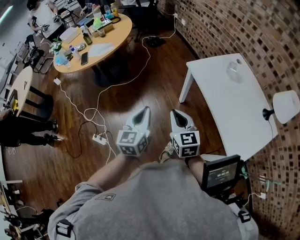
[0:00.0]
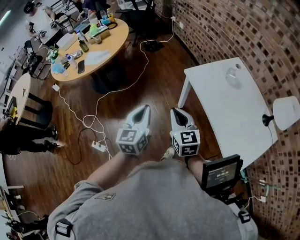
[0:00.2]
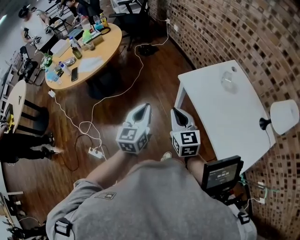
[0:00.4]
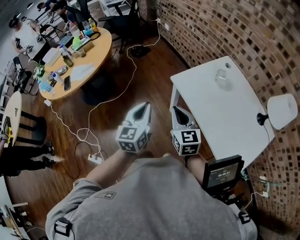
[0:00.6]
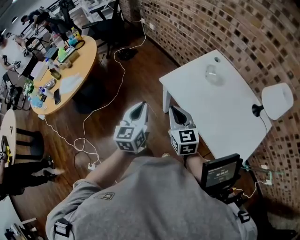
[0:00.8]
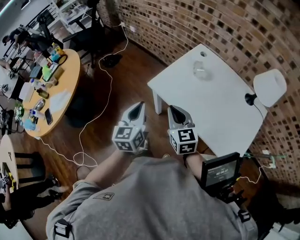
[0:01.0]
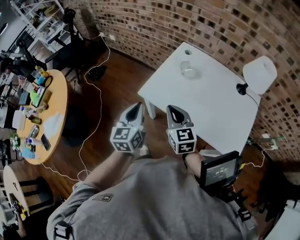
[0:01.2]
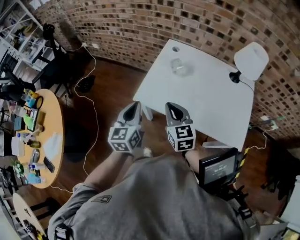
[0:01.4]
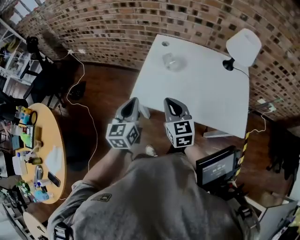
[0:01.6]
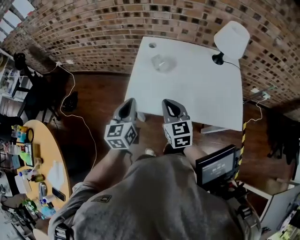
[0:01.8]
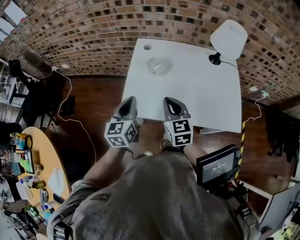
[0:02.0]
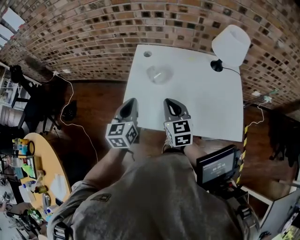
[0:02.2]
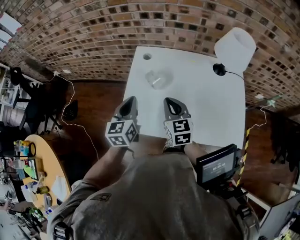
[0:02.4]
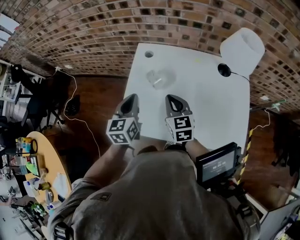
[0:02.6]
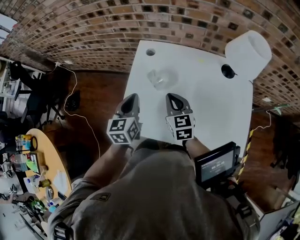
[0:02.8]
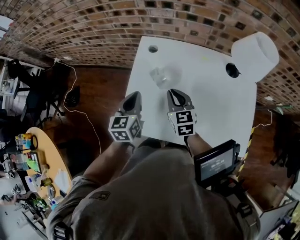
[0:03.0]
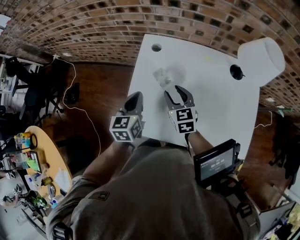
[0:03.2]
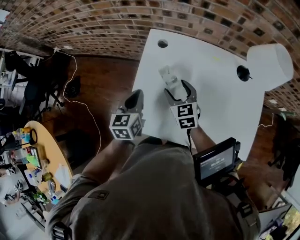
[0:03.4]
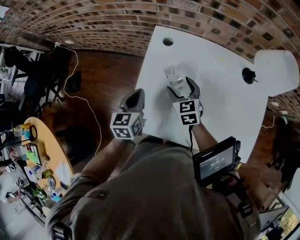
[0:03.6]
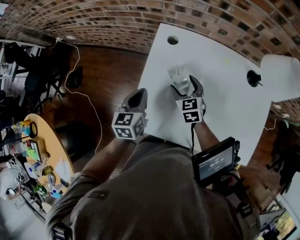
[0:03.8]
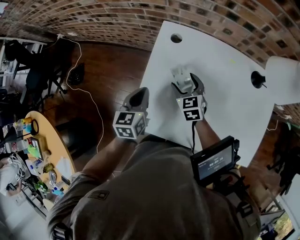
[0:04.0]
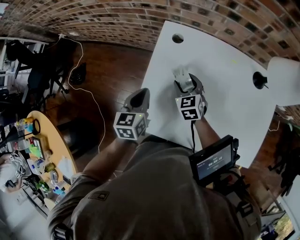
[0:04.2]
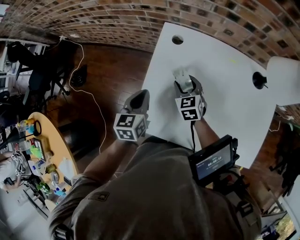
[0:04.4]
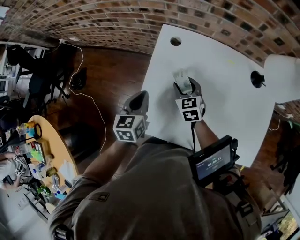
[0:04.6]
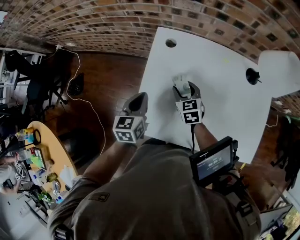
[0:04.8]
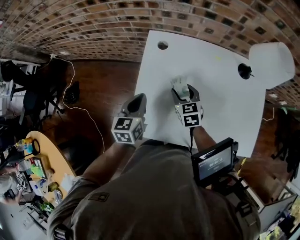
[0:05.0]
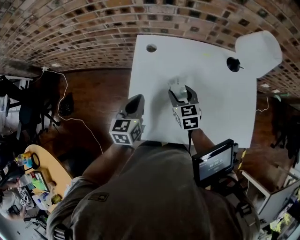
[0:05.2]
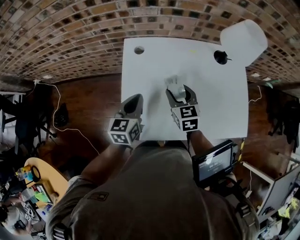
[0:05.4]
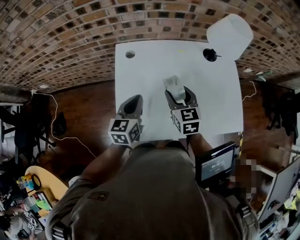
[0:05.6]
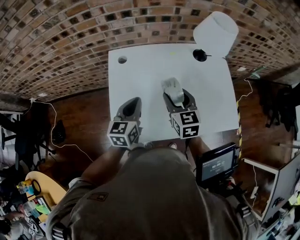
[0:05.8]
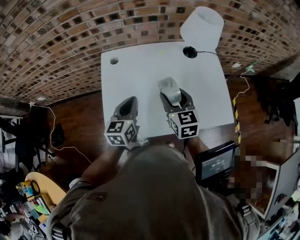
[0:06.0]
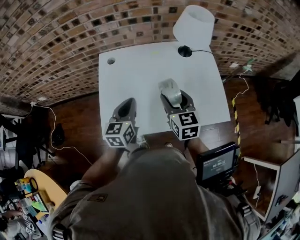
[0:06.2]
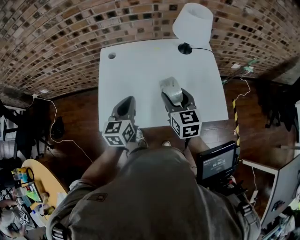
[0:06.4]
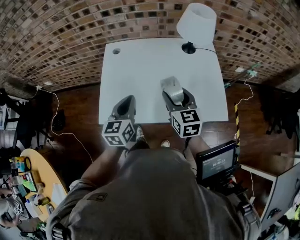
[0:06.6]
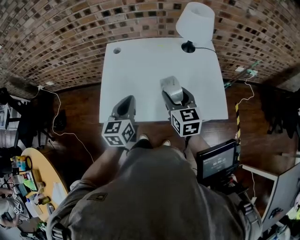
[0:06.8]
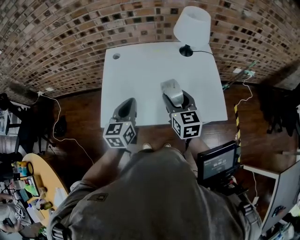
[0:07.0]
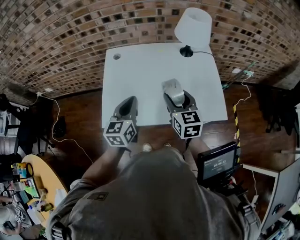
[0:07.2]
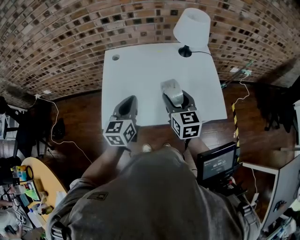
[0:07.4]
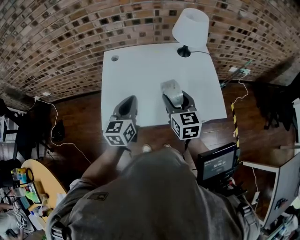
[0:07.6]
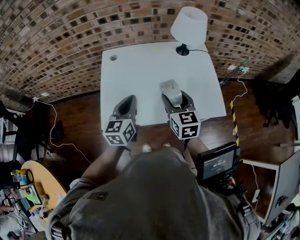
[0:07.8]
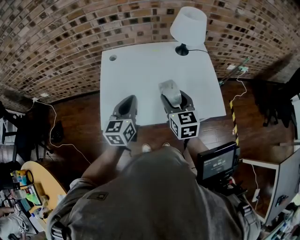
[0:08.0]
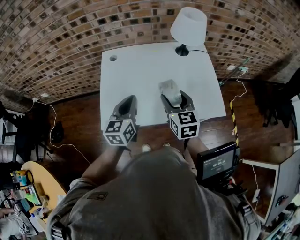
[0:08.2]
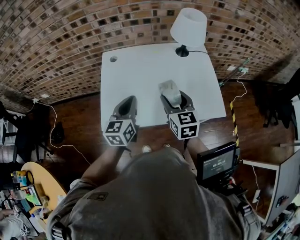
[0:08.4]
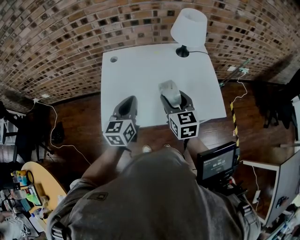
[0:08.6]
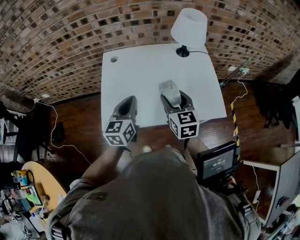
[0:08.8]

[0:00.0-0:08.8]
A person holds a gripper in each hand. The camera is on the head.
0:00.0 to 0:01.4: The right gripper moves roughly 30 cm, and turns by about 40 degrees. The left gripper changes place by some 35 cm, and rotates about 40 degrees.
0:01.4 to 0:03.0: The right gripper shifts approximately 25 cm forward and to the right, while the left gripper heads forward, covering some 25 cm.
0:03.0 to 0:04.4: The left gripper travels downward and to the left by roughly 10 cm, while the right gripper heads downward, forward and to the left, covering approximately 15 cm, and opens its fingers.
0:04.4 to 0:05.8: The left gripper is displaced to the right and upward by roughly 15 cm, and swivels roughly 30 degrees. Meanwhile the right gripper is displaced upward, to the right and backward by roughly 25 cm, and changes its angle by roughly 30 degrees.
0:05.8 to 0:07.4: The left gripper is displaced backward, to the right and upward by approximately 15 cm. Meanwhile the right gripper heads backward and to the right, covering some 15 cm.
0:07.4 to 0:08.8: Neither gripper changes place.

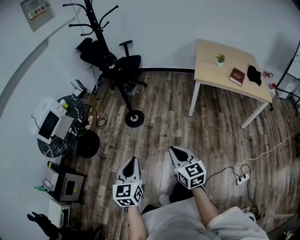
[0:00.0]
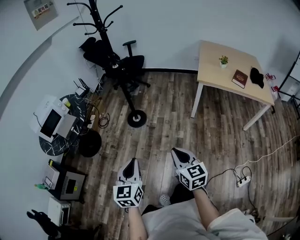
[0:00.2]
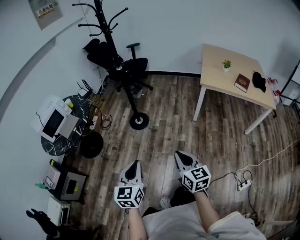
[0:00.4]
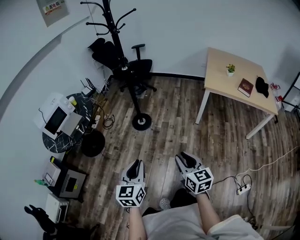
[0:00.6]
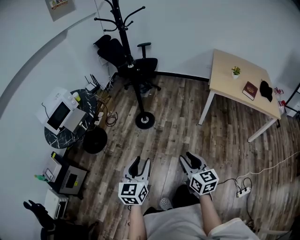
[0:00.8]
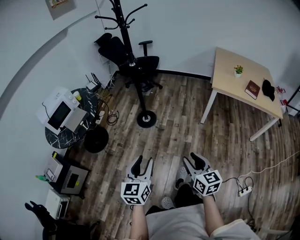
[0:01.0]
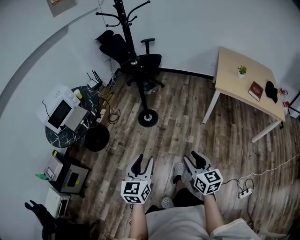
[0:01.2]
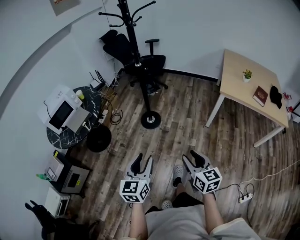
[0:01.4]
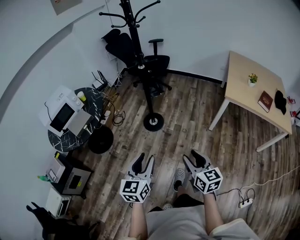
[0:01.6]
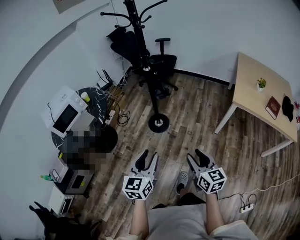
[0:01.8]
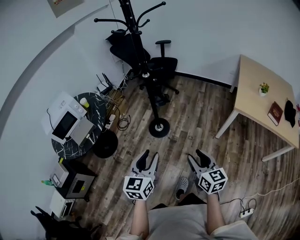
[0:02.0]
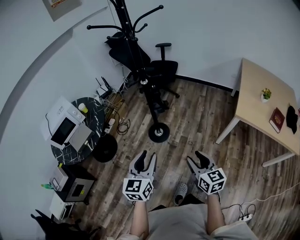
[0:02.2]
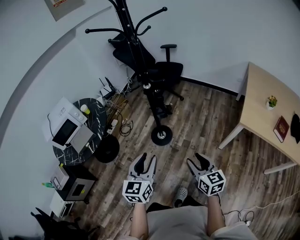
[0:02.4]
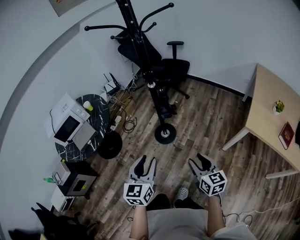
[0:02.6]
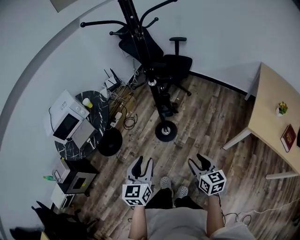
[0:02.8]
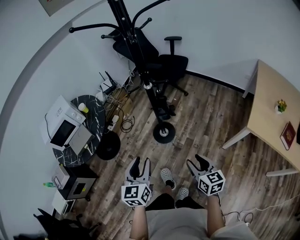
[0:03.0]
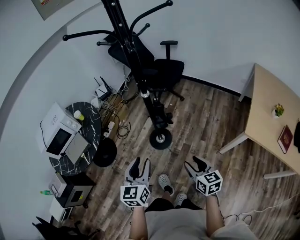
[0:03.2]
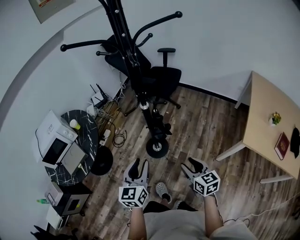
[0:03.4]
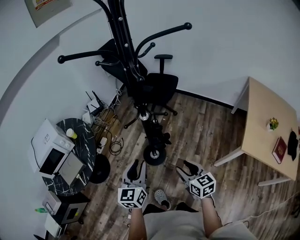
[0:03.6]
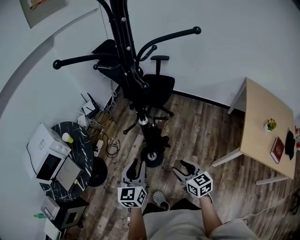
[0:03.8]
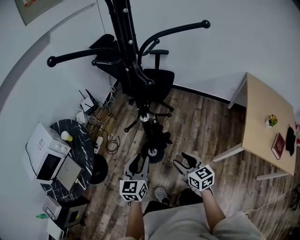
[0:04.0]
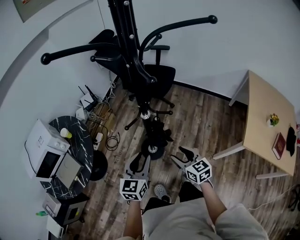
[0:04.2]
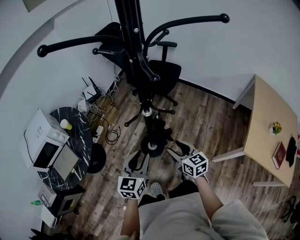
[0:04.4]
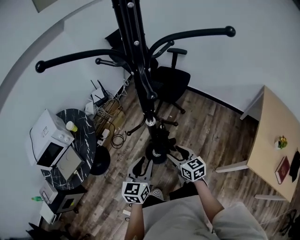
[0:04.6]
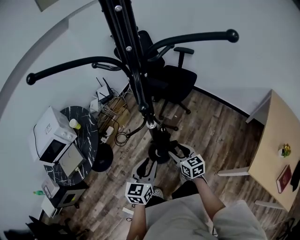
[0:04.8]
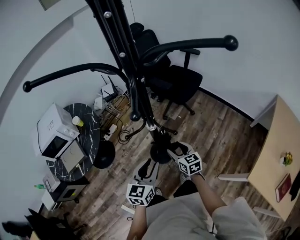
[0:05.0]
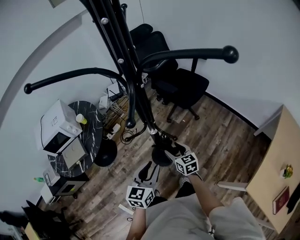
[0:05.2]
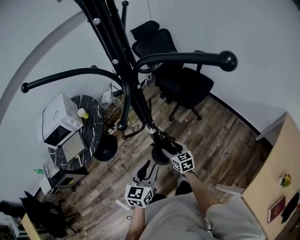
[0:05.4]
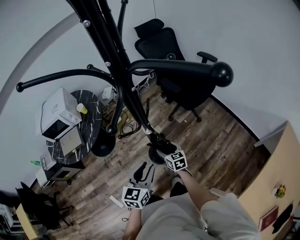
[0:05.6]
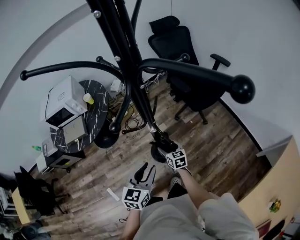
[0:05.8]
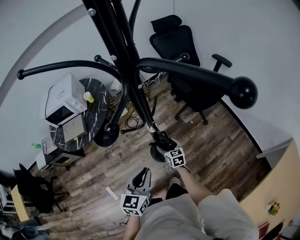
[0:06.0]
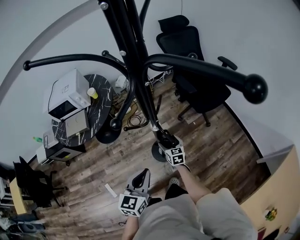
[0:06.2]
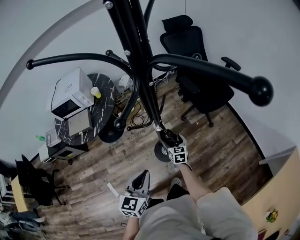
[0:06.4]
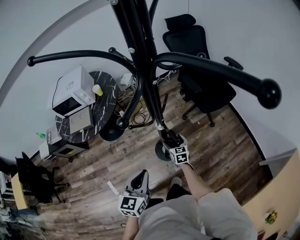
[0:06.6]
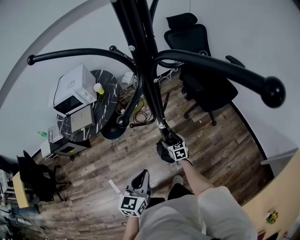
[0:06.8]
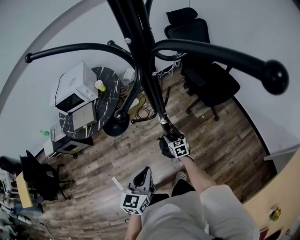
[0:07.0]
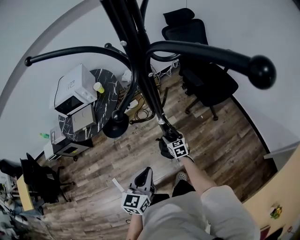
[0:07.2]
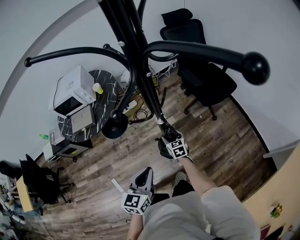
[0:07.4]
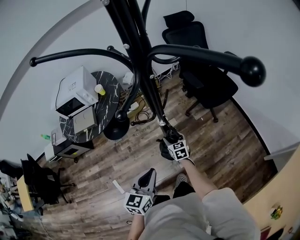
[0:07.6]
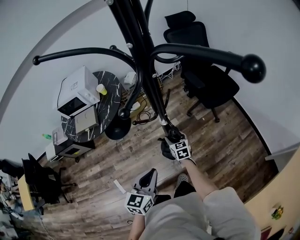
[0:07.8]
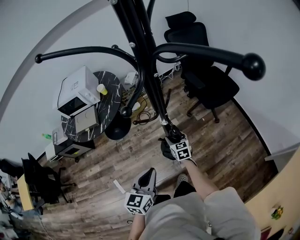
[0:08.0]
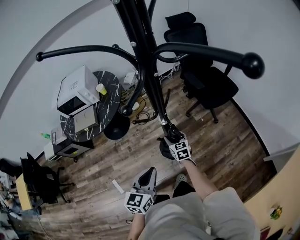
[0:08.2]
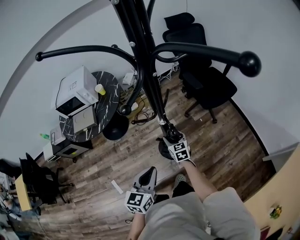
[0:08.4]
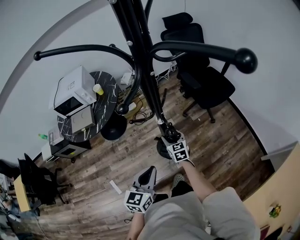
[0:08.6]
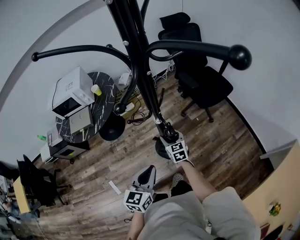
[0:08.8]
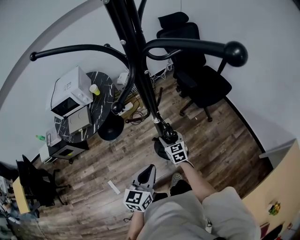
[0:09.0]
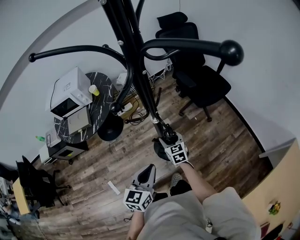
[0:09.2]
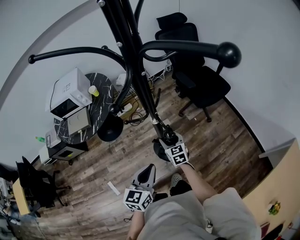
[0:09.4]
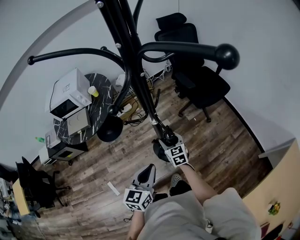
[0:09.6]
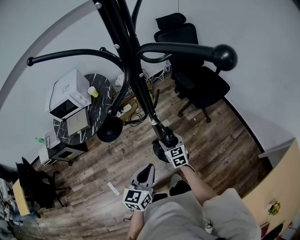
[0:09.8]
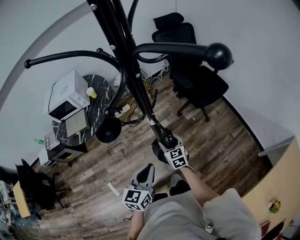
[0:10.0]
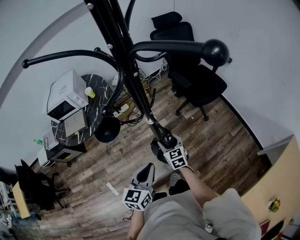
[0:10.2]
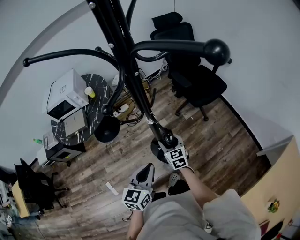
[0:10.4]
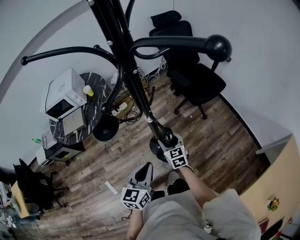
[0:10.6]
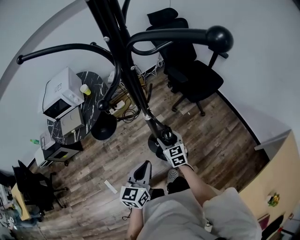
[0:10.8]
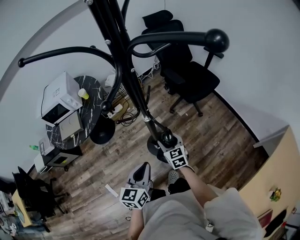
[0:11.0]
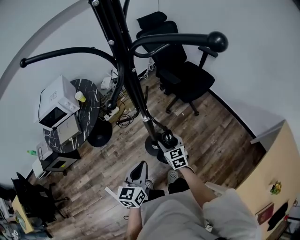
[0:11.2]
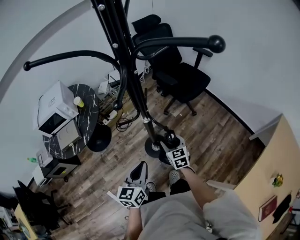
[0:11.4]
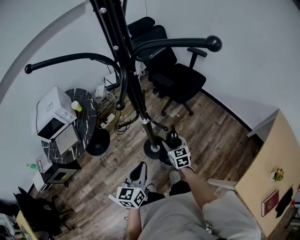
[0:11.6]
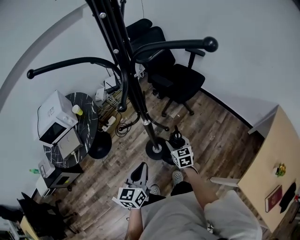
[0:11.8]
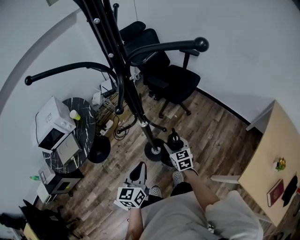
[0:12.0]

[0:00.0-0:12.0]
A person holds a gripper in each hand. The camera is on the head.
0:00.0 to 0:01.6: The grippers both shift forward by about 15 cm. The left gripper opens up. Meanwhile the right gripper opens up.
0:01.6 to 0:03.0: The two grippers go approximately 30 cm forward.
0:03.0 to 0:04.4: The grippers both shift forward by approximately 25 cm.
0:04.4 to 0:06.0: The right gripper moves about 25 cm, and turns by roughly 30 degrees, while the left gripper moves approximately 10 cm, and changes its angle by about 30 degrees.
0:06.0 to 0:07.6: The grippers move only a little.
0:07.6 to 0:09.0: The right gripper heads upward, covering some 5 cm.
0:09.0 to 0:10.4: The grippers stay close to where they were, moving slightly.
0:10.4 to 0:12.0: The right gripper shifts by approximately 5 cm, and changes its angle by approximately 20 degrees; the left gripper travels to the left by some 5 cm.

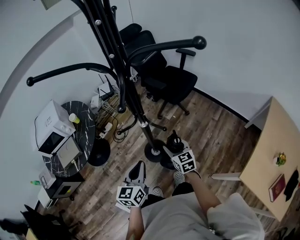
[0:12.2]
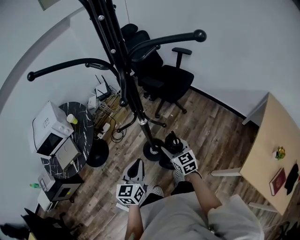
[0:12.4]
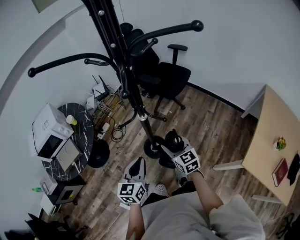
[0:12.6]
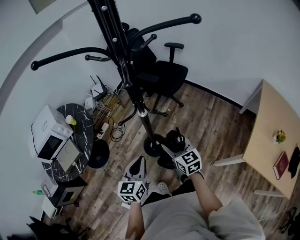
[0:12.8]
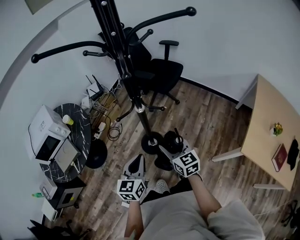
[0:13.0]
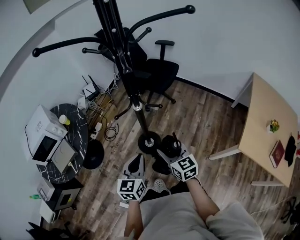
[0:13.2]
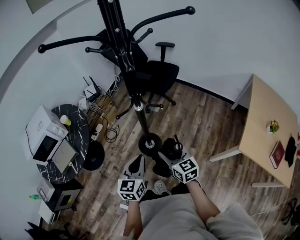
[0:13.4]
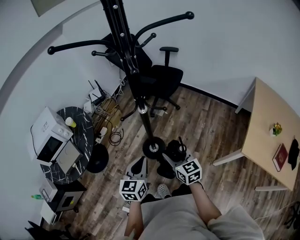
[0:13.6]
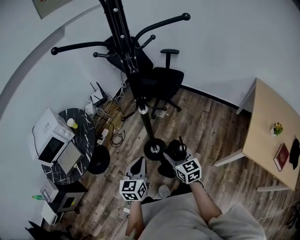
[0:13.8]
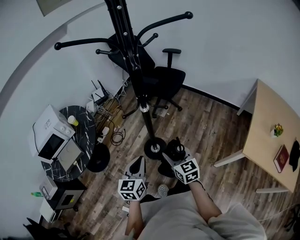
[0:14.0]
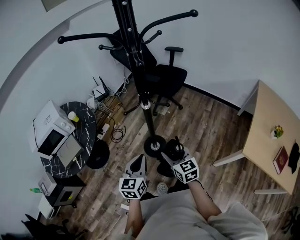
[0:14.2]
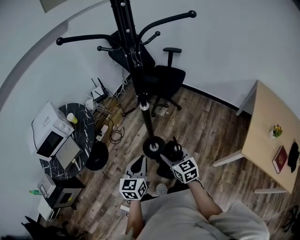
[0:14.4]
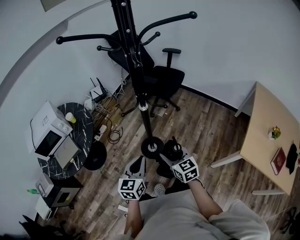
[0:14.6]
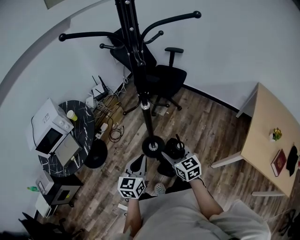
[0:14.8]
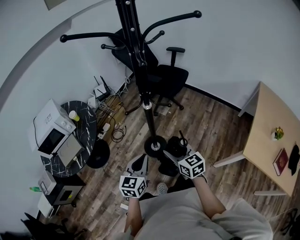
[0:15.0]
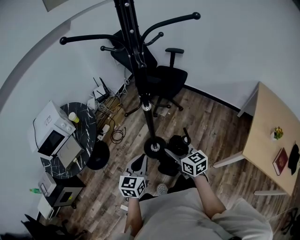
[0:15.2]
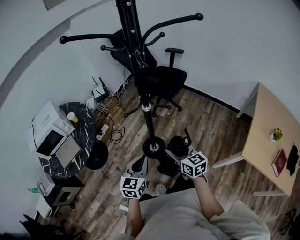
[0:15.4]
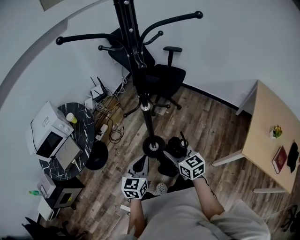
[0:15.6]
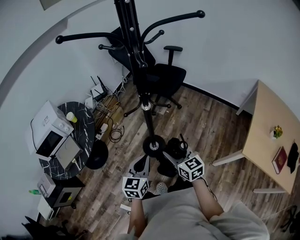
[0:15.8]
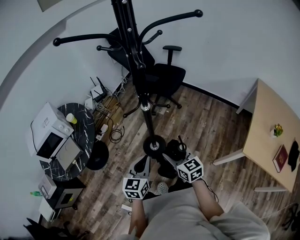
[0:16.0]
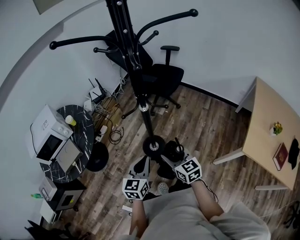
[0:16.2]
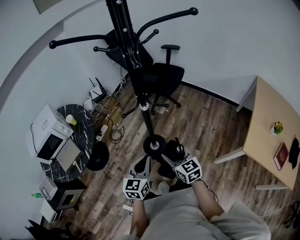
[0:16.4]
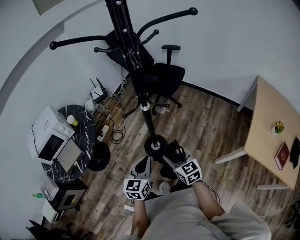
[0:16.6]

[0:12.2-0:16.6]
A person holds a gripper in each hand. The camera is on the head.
0:12.2 to 0:13.6: The right gripper goes about 15 cm backward; the left gripper travels backward by roughly 5 cm.
0:13.6 to 0:16.6: The grippers make only small movements.
